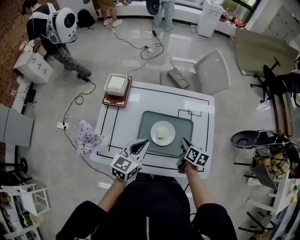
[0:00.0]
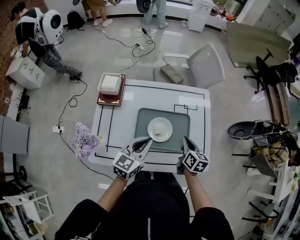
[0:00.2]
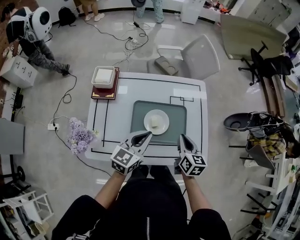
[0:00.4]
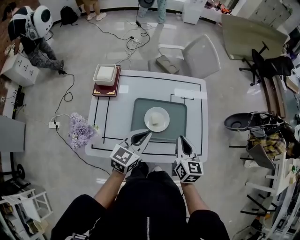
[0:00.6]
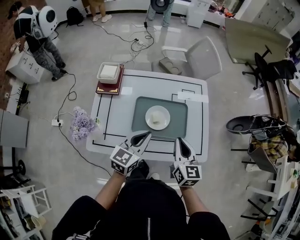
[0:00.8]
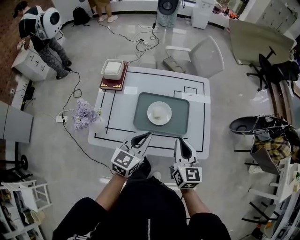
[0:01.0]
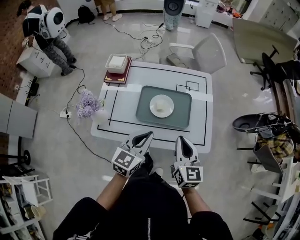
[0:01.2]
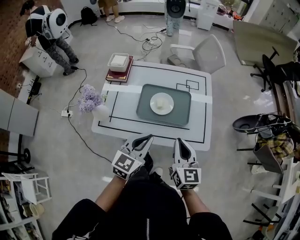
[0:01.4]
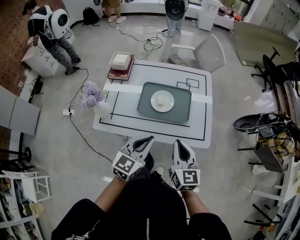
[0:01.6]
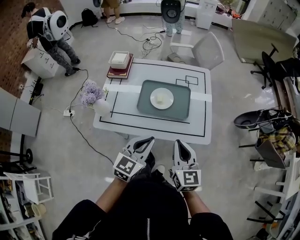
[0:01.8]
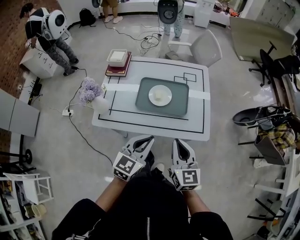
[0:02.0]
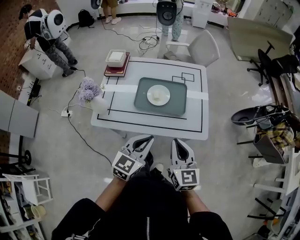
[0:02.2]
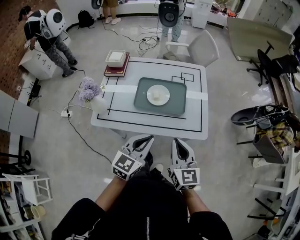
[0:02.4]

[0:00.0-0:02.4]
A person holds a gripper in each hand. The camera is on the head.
0.0 to 1.2 s: The left gripper shifts roughly 15 cm backward and to the right, while the right gripper shifts approximately 25 cm backward and upward, and turns by roughly 40 degrees.
1.2 to 2.4 s: The right gripper shifts approximately 10 cm backward; the left gripper is displaced backward and to the right by some 10 cm.

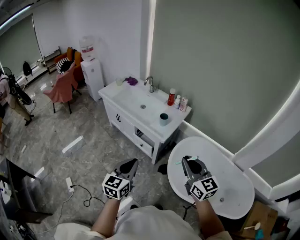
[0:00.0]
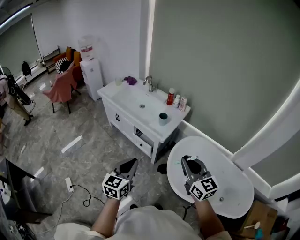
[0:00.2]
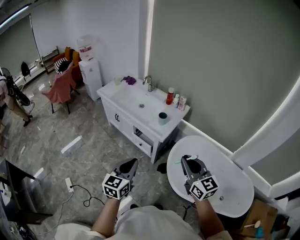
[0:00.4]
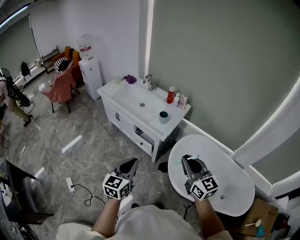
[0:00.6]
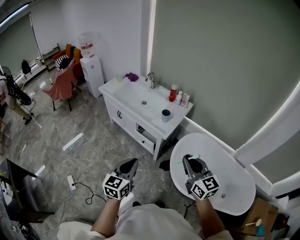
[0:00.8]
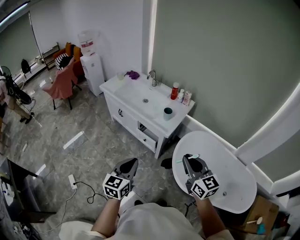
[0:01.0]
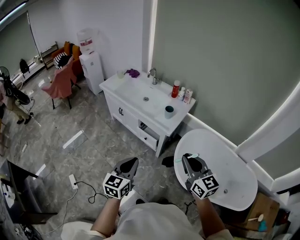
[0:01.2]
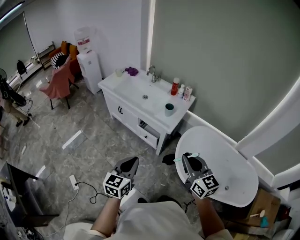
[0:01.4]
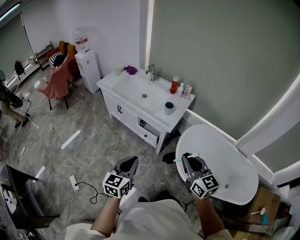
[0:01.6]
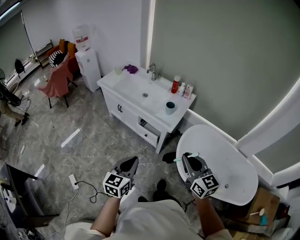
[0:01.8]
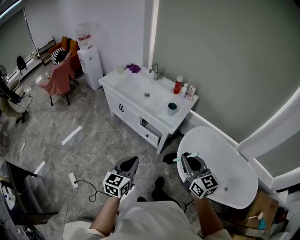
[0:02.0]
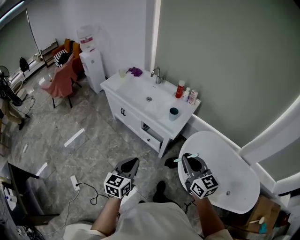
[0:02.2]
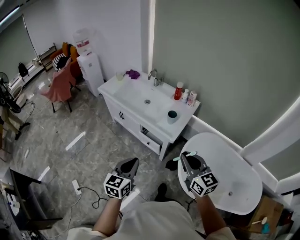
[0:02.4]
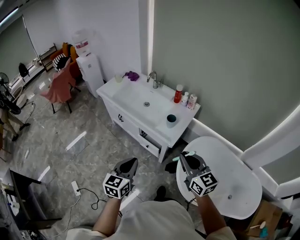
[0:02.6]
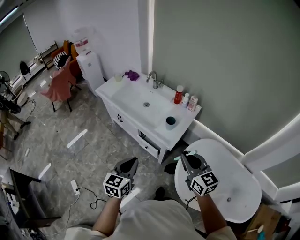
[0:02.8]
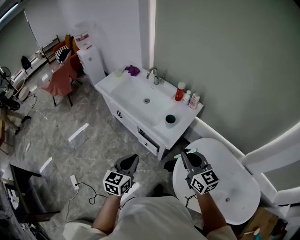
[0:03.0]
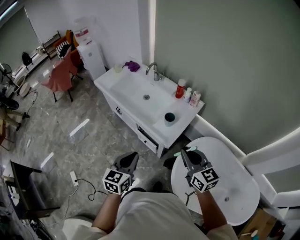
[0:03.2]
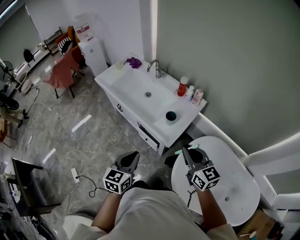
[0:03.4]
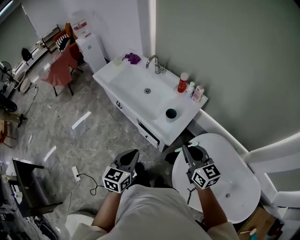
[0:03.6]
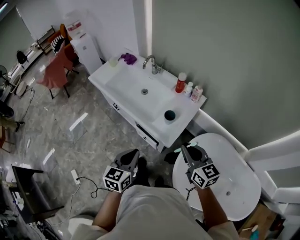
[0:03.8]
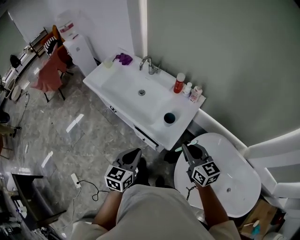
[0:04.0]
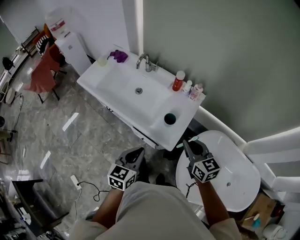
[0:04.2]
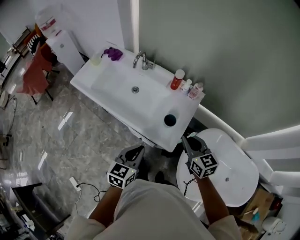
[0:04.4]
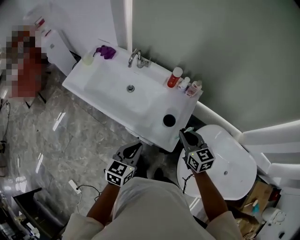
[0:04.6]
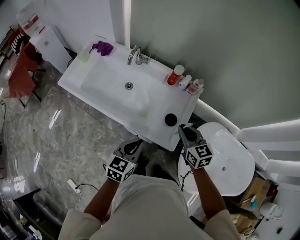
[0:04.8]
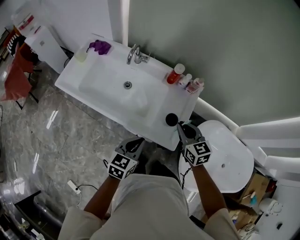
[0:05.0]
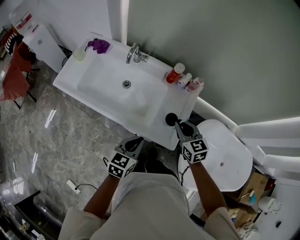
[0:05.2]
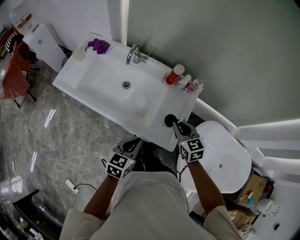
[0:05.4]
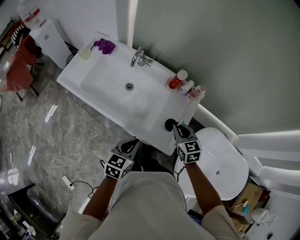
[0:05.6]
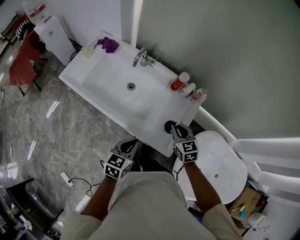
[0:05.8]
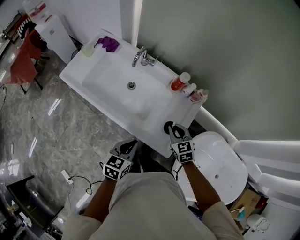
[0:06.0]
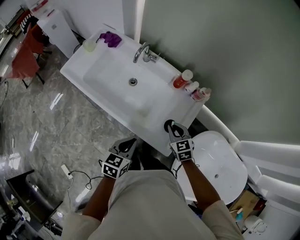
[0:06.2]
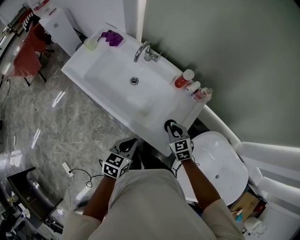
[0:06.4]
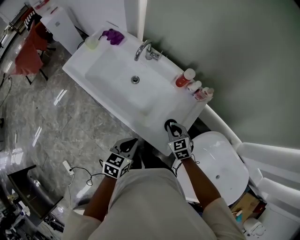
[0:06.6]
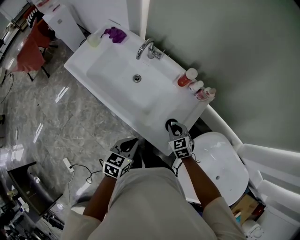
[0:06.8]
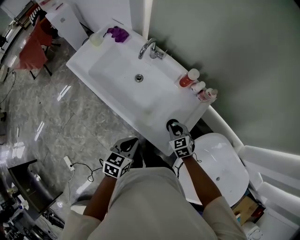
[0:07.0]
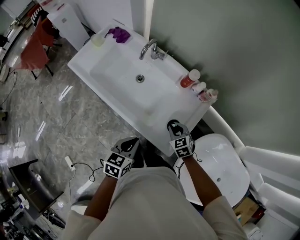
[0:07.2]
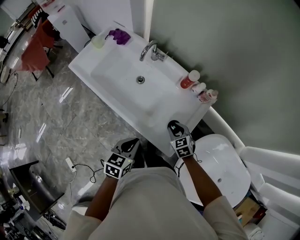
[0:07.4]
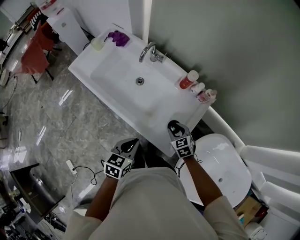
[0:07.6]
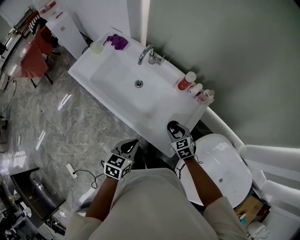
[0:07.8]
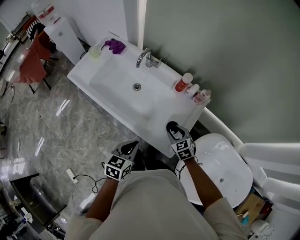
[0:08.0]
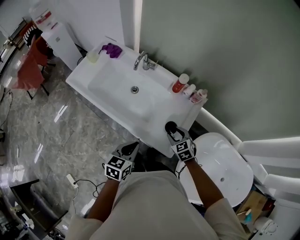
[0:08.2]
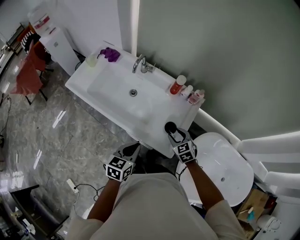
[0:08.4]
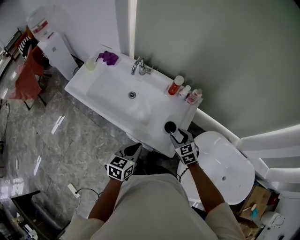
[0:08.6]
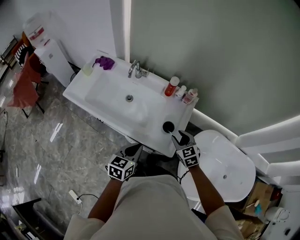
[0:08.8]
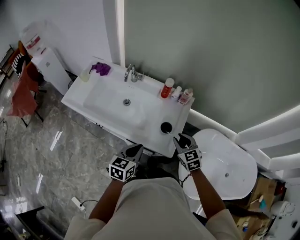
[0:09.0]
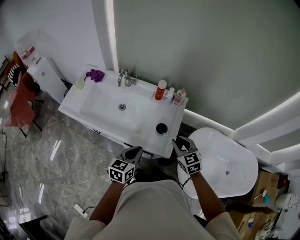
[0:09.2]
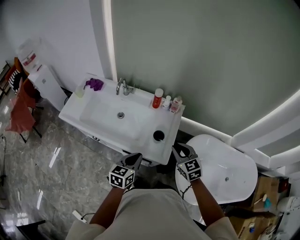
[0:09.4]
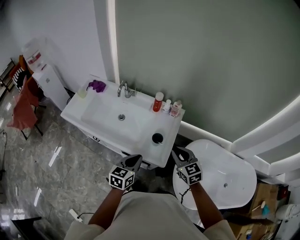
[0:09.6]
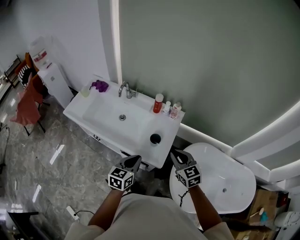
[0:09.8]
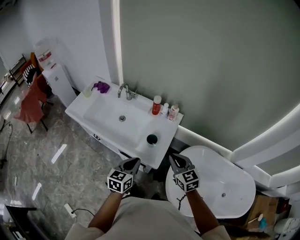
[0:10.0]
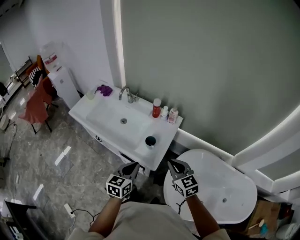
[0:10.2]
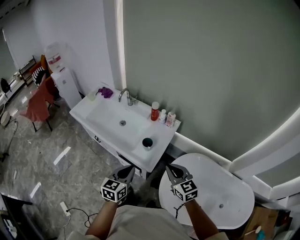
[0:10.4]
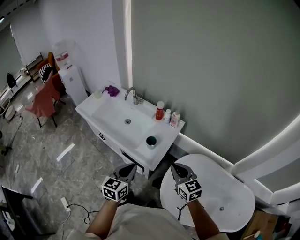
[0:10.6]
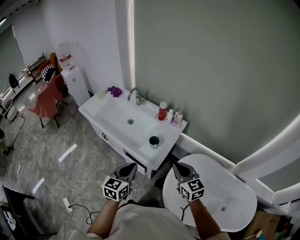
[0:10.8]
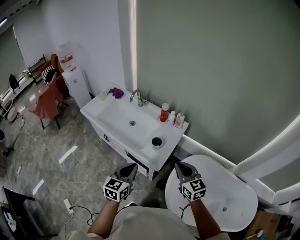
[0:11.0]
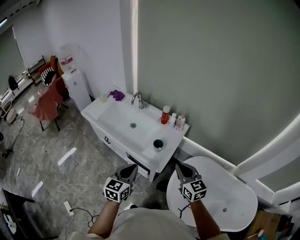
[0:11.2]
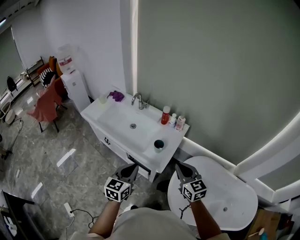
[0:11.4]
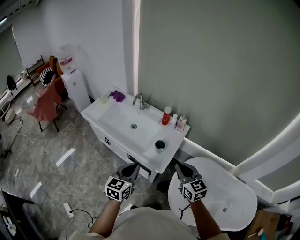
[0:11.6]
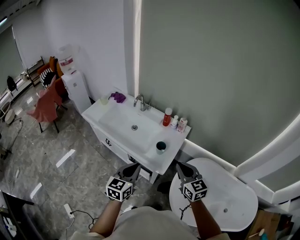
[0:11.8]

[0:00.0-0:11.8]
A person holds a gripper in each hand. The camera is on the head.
0.0 to 1.4 s: Both grippers move to the left, some 5 cm.
1.4 to 3.0 s: Both grippers travel together forward, roughly 20 cm.
3.0 to 4.4 s: The right gripper heads forward and downward, covering roughly 25 cm; the left gripper goes about 20 cm forward.
4.4 to 6.0 s: The right gripper goes approximately 20 cm downward, forward and to the left, and turns by approximately 20 degrees. Meanwhile the left gripper heads forward and downward, covering some 10 cm.
6.0 to 7.4 s: The right gripper shifts some 10 cm downward.
7.4 to 8.8 s: The left gripper changes place by approximately 5 cm; the right gripper goes roughly 15 cm upward and backward.
8.8 to 10.4 s: The left gripper shifts some 20 cm to the right, backward and upward; the right gripper is displaced backward, upward and to the right by some 25 cm, swivels about 20 degrees, and closes its fingers.
10.4 to 11.8 s: The left gripper heads to the left, covering approximately 5 cm. Meanwhile the right gripper ends up approximately 5 cm from where it was.

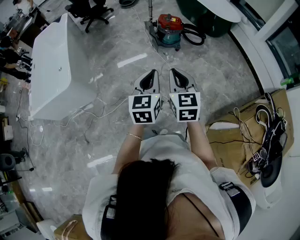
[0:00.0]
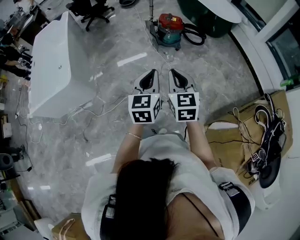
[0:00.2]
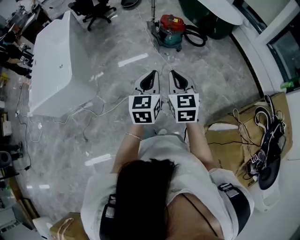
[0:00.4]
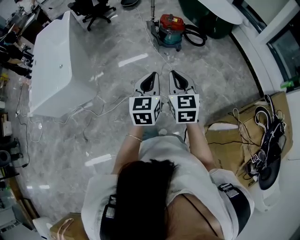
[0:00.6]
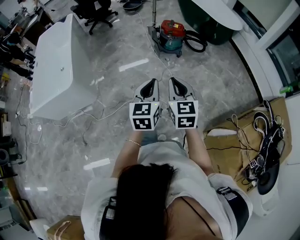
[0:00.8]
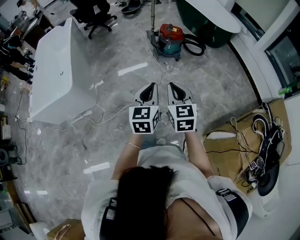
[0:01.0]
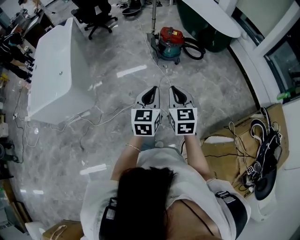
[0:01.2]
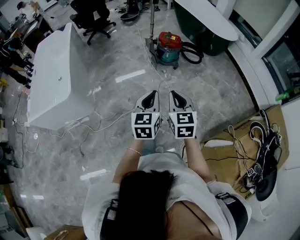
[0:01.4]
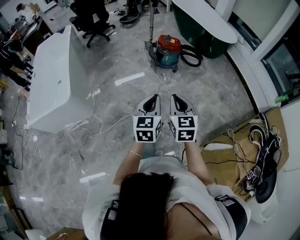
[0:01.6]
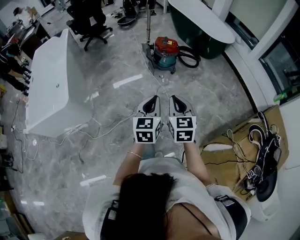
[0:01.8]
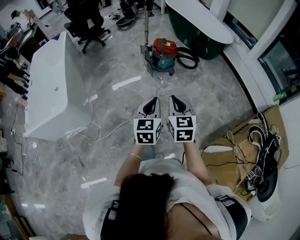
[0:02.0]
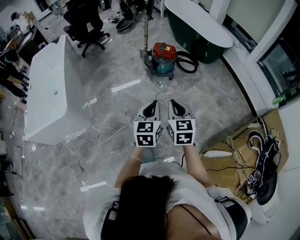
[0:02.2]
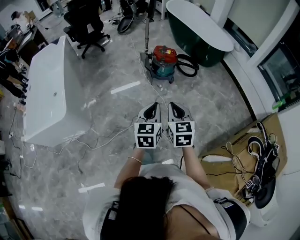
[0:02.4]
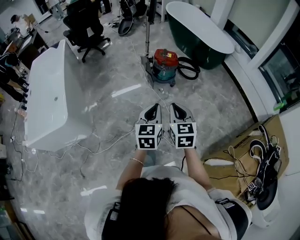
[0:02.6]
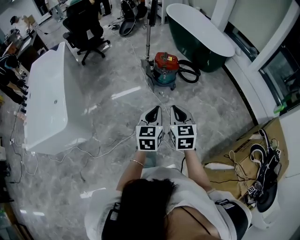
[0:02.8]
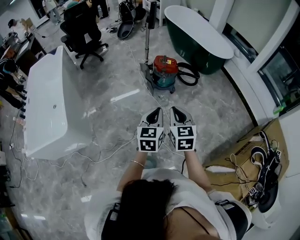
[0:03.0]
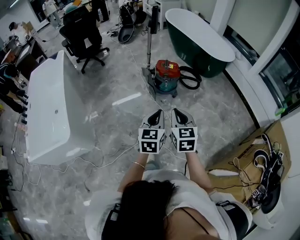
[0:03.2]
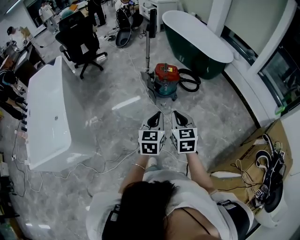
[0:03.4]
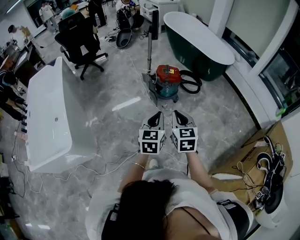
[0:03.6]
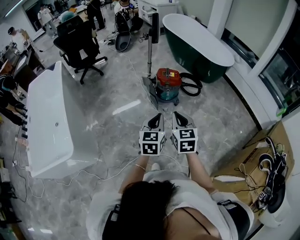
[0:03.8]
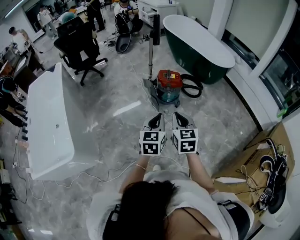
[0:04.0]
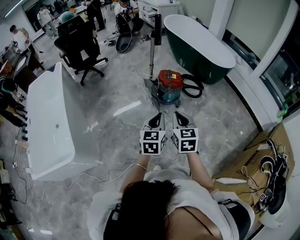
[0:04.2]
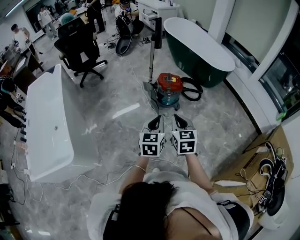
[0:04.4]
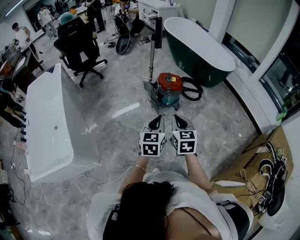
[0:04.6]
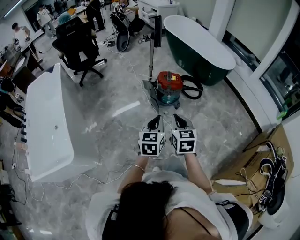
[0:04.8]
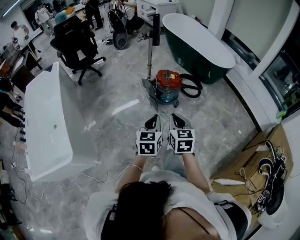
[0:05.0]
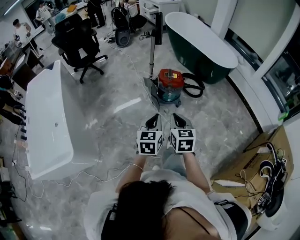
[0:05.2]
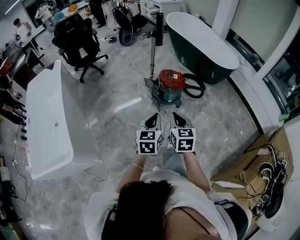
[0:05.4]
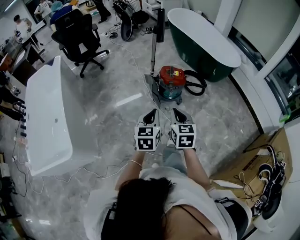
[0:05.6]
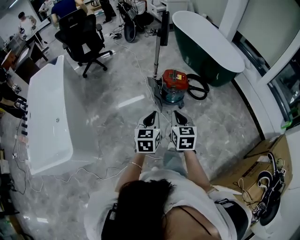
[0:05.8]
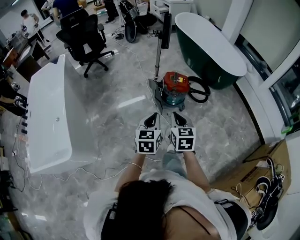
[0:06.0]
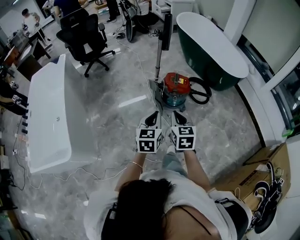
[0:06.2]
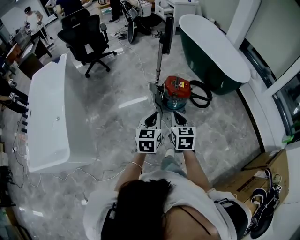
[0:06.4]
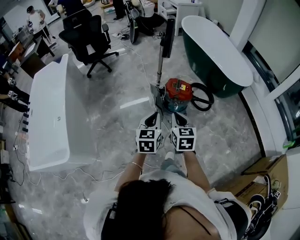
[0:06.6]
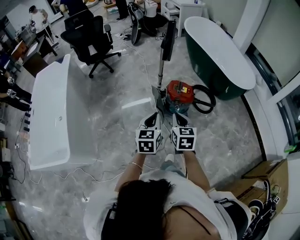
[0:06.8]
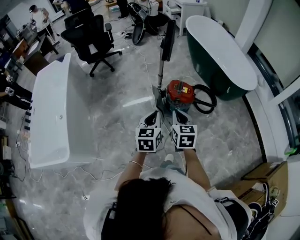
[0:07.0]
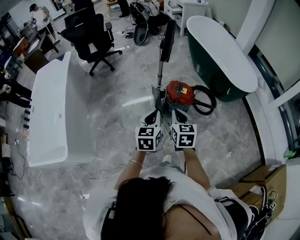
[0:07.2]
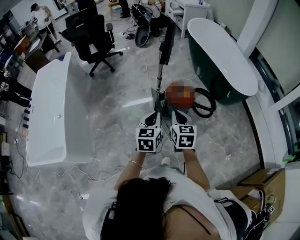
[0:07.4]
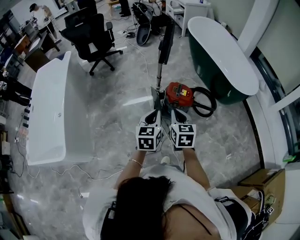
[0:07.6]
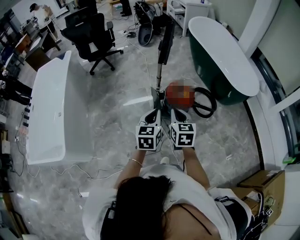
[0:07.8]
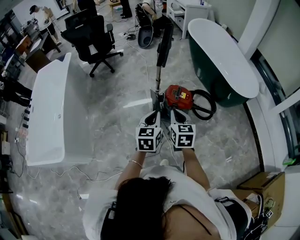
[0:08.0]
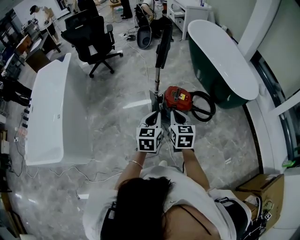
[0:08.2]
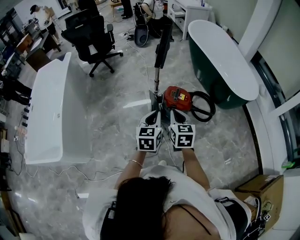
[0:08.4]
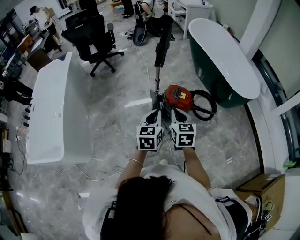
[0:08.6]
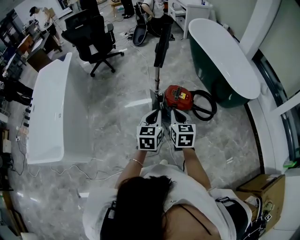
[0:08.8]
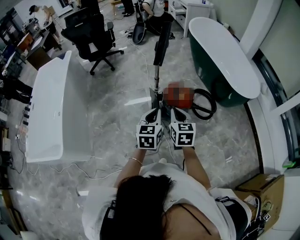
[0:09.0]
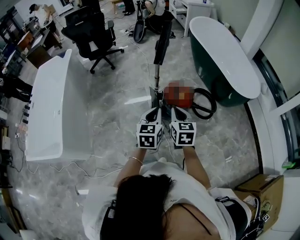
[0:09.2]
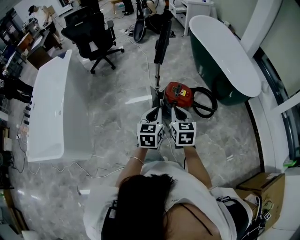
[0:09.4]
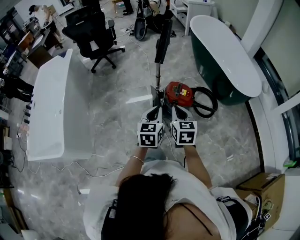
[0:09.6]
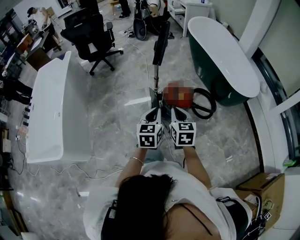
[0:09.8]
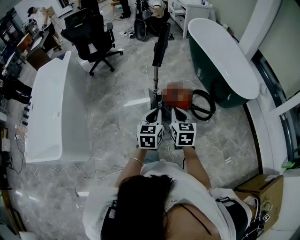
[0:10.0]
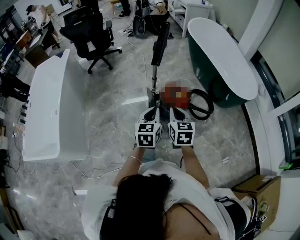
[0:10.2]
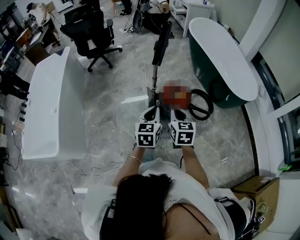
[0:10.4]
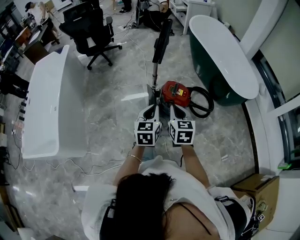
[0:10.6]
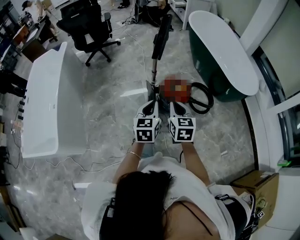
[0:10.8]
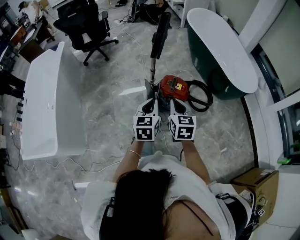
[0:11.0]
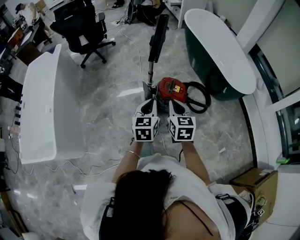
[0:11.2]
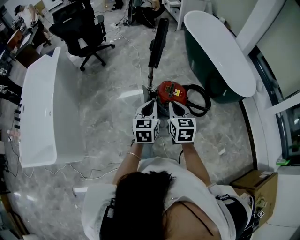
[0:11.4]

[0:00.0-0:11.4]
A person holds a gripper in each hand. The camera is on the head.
0.0 to 1.4 s: The grippers make only small movements.
1.4 to 2.8 s: Both grippers travel together forward, roughly 15 cm.
2.8 to 4.2 s: Both grippers move forward and to the left, about 15 cm.
4.2 to 5.6 s: Both grippers move forward, some 5 cm.
5.6 to 7.2 s: Both grippers move forward, some 20 cm.
7.2 to 8.6 s: The left gripper changes place by roughly 5 cm. The right gripper ends up some 5 cm from where it was.
8.6 to 10.0 s: The grippers stay close to where they were, moving slightly.
10.0 to 11.4 s: Both grippers travel together forward, some 5 cm.
